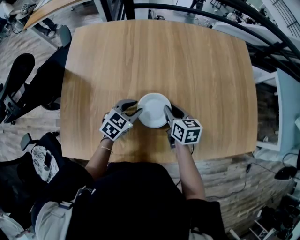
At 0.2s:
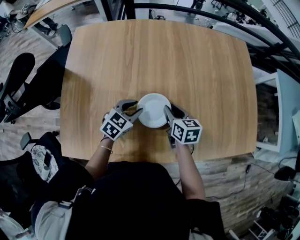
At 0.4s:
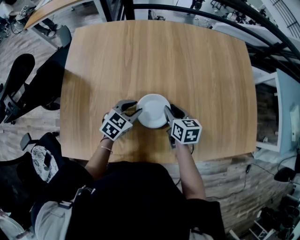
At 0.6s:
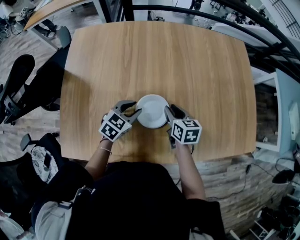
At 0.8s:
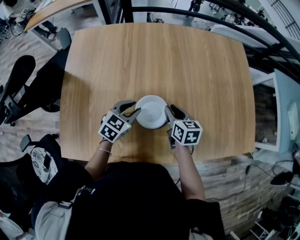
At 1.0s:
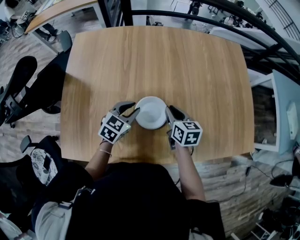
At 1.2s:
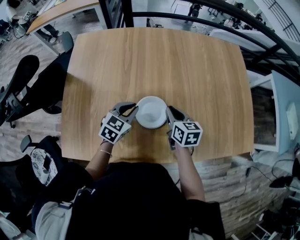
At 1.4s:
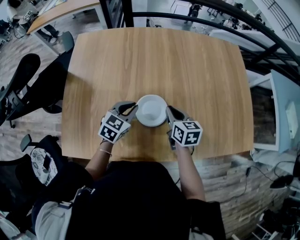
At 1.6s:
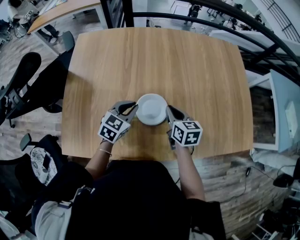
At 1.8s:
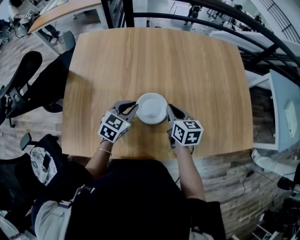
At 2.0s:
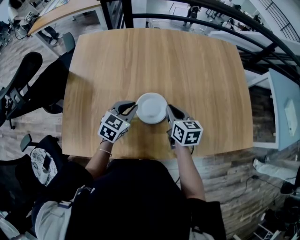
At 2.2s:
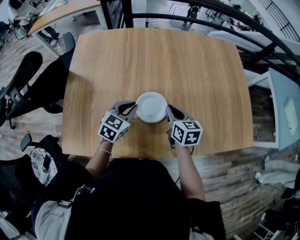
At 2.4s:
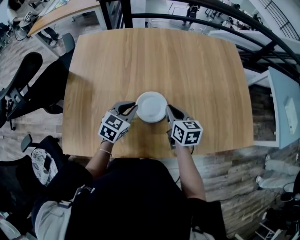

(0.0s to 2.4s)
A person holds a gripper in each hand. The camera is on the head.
0.0s - 2.4s: The grippers move only a little.

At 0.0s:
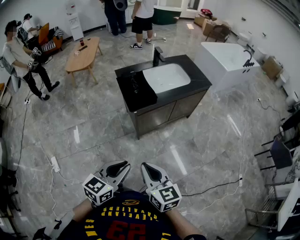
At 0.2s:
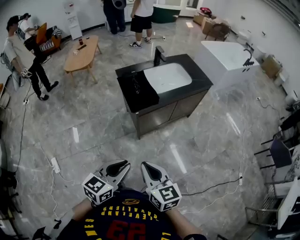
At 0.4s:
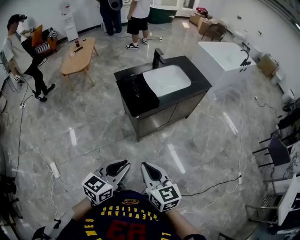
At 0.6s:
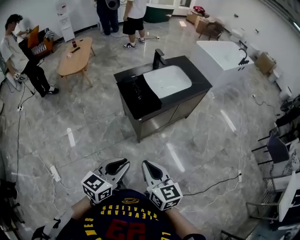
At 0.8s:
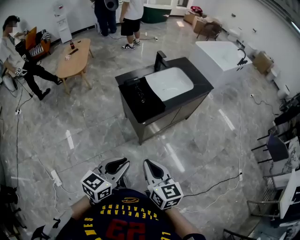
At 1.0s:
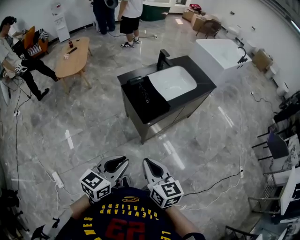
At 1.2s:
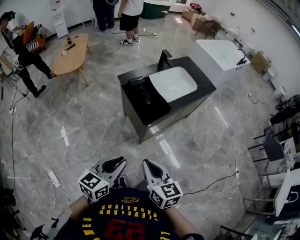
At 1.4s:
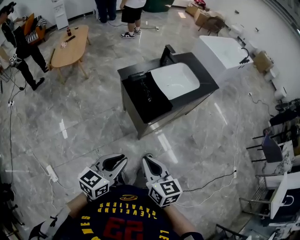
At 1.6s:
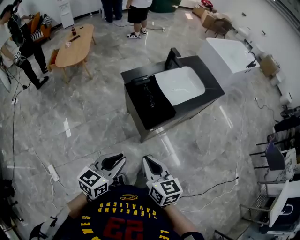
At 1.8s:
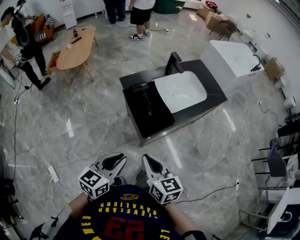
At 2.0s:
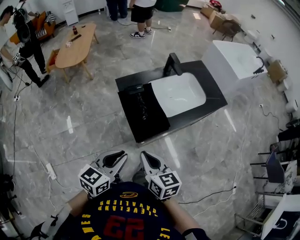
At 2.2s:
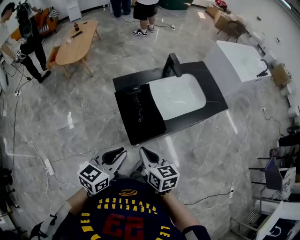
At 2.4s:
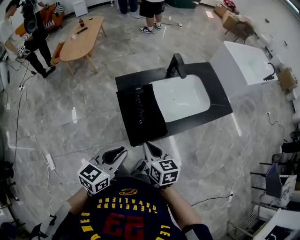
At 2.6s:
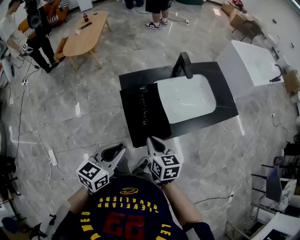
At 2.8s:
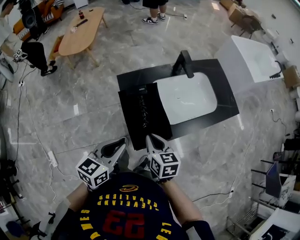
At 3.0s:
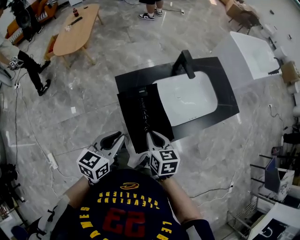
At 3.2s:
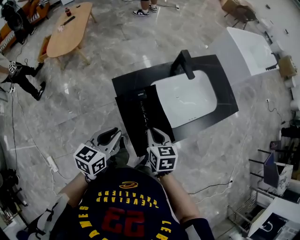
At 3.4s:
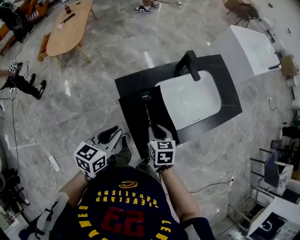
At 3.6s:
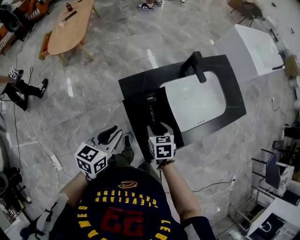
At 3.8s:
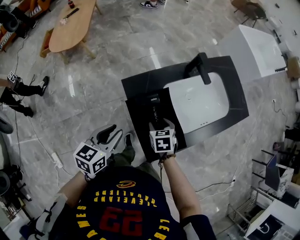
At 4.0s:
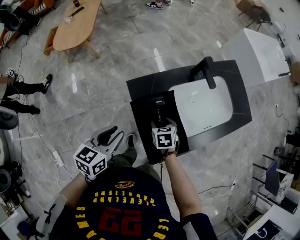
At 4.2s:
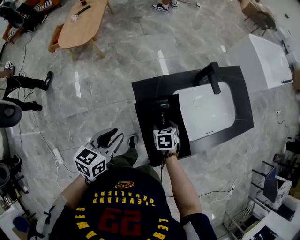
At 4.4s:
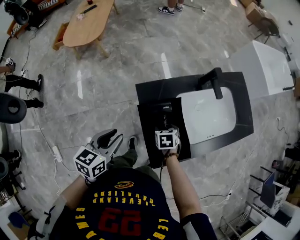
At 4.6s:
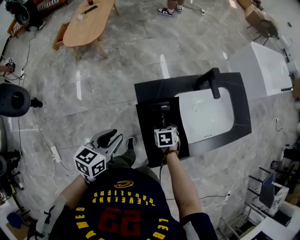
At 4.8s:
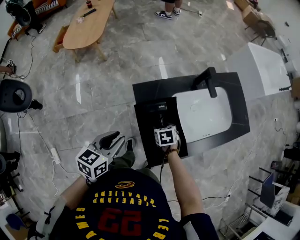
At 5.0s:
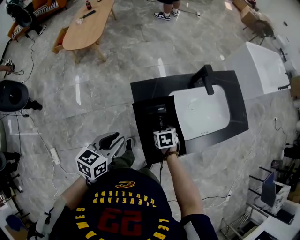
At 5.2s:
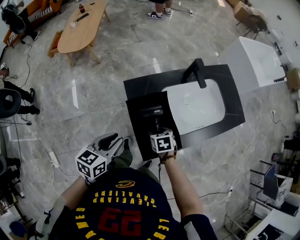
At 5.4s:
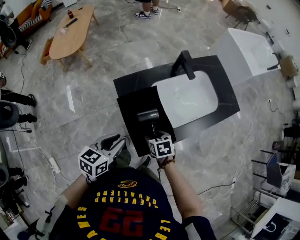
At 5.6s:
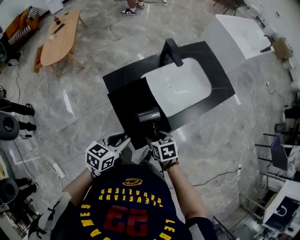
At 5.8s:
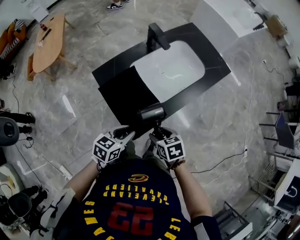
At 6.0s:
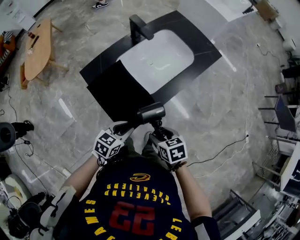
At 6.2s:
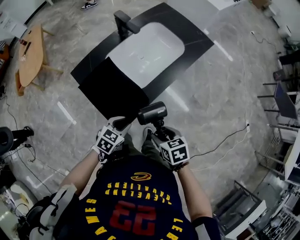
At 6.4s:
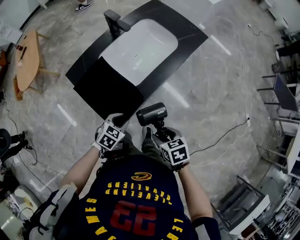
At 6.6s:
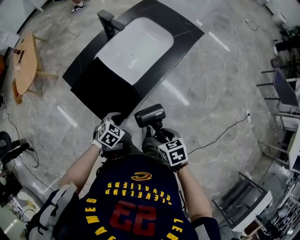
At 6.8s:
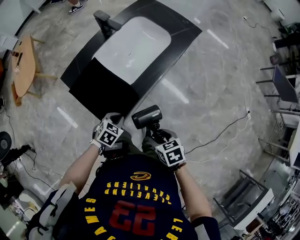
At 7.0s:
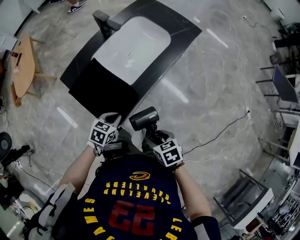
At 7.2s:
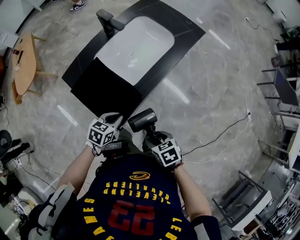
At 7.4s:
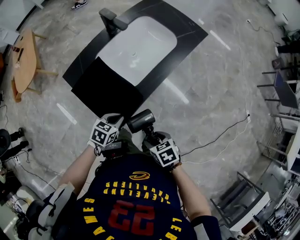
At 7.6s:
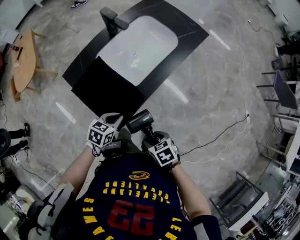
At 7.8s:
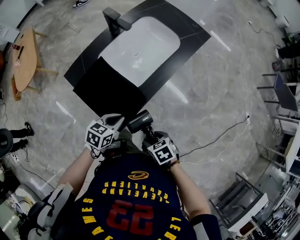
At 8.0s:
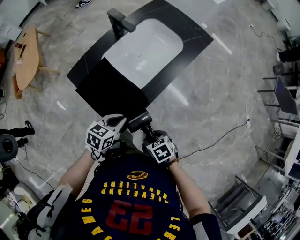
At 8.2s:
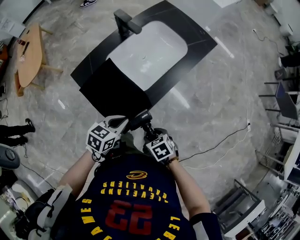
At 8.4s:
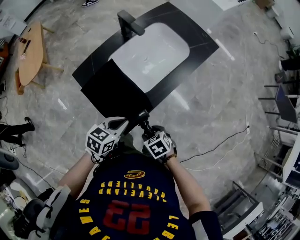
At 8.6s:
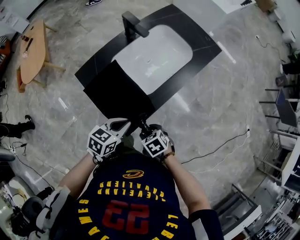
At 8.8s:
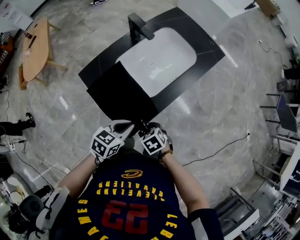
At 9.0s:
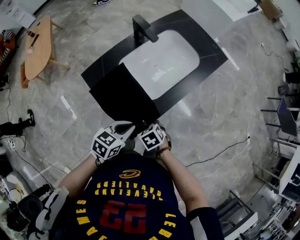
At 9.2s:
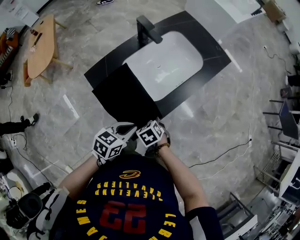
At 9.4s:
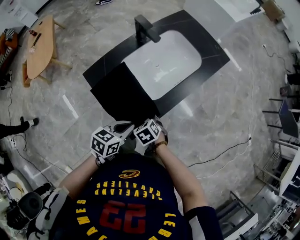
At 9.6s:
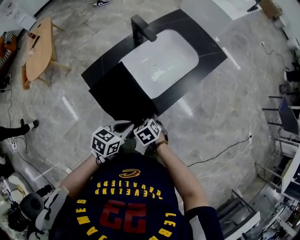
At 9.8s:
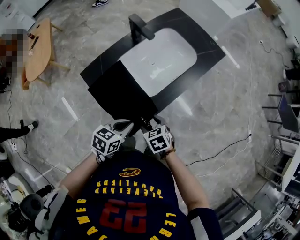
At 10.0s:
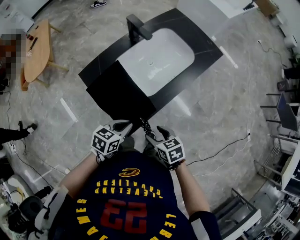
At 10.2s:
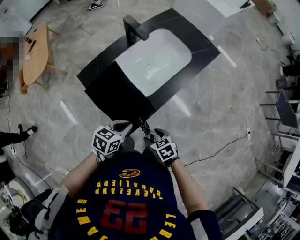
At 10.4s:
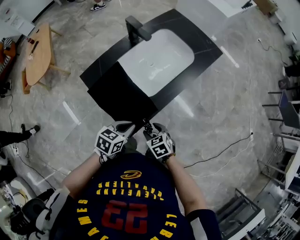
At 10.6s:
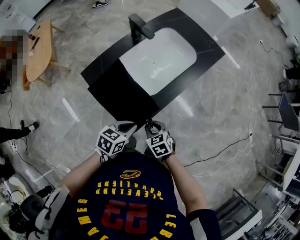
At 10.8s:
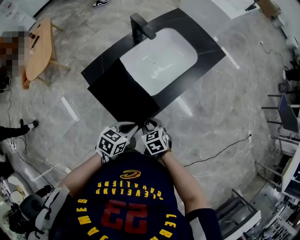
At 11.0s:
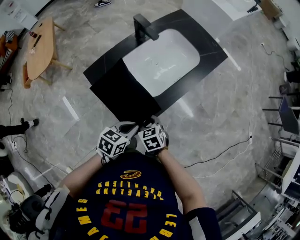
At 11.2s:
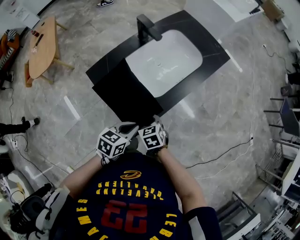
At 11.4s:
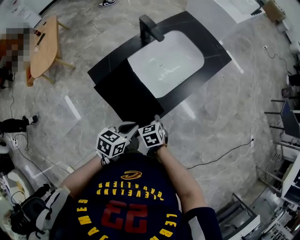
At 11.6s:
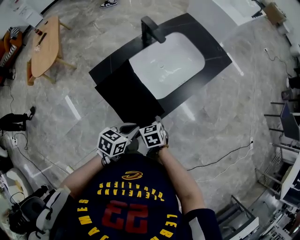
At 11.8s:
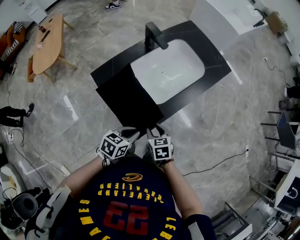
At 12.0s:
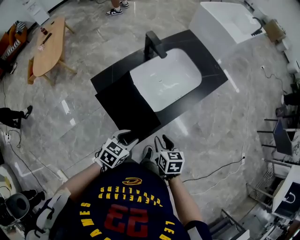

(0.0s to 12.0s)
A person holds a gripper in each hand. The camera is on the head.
0.0s - 1.6s: The right gripper travels forward and to the left by roughly 25 cm, while the left gripper moves to the left and forward, about 30 cm.
1.6s - 3.0s: The grippers both shift forward by roughly 30 cm.
3.0s - 4.4s: The left gripper is displaced to the left and forward by roughly 15 cm; the right gripper heads downward and forward, covering about 20 cm, tips its fingers downward by about 30 degrees, and opens up.
4.4s - 6.0s: The left gripper shifts approximately 30 cm to the right, backward and downward, and changes its angle by approximately 40 degrees, while the right gripper is displaced backward and to the right by roughly 30 cm, and turns by approximately 20 degrees.
6.0s - 7.6s: The right gripper heads backward and downward, covering some 10 cm, and travels to the right and back again, approximately 10 cm each way.
7.6s - 9.0s: The left gripper travels upward by roughly 10 cm, while the right gripper changes place by about 15 cm.
10.4s - 12.0s: The left gripper opens its fingers. Meanwhile the right gripper moves upward, roughly 10 cm, travels to the left and back again, roughly 10 cm each way, swivels roughly 20 degrees, and closes up.

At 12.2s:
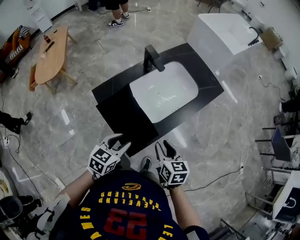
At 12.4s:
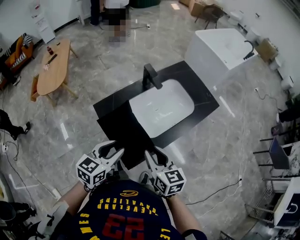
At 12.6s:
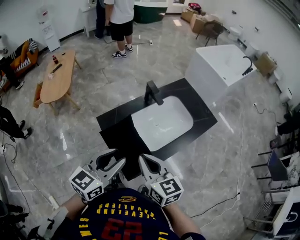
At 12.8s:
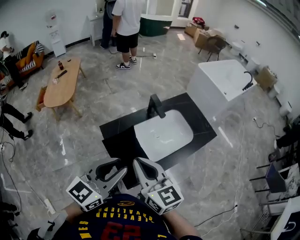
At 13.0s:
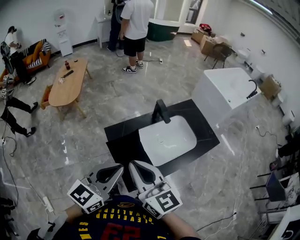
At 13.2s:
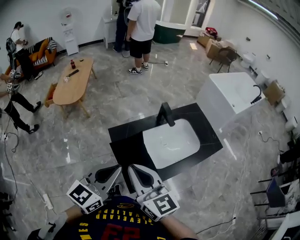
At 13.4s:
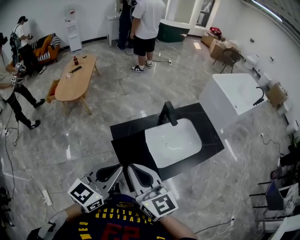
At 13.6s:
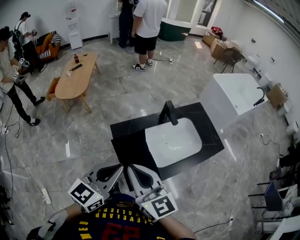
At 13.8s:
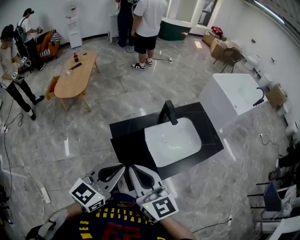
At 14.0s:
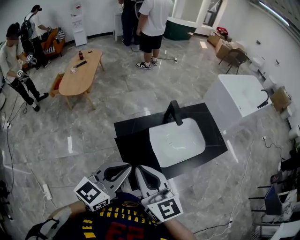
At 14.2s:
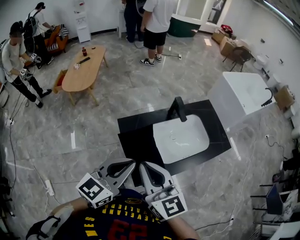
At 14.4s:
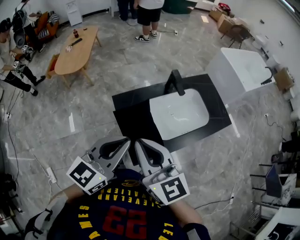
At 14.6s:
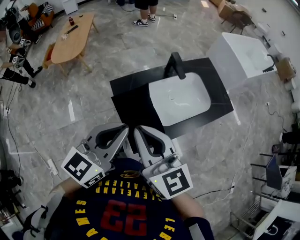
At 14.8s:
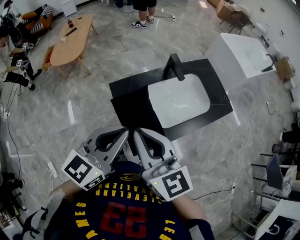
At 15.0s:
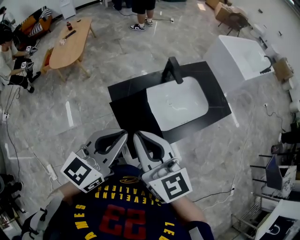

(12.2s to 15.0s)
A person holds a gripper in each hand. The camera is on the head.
12.2s - 13.6s: The right gripper goes approximately 35 cm upward and to the left, tilts its fingers roughly 30 degrees upward, and closes up. Meanwhile the left gripper shifts roughly 25 cm upward, swivels roughly 30 degrees, and closes up.
13.6s - 15.0s: The grippers move only a little.

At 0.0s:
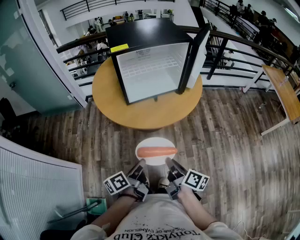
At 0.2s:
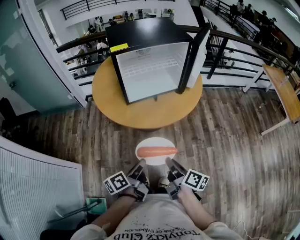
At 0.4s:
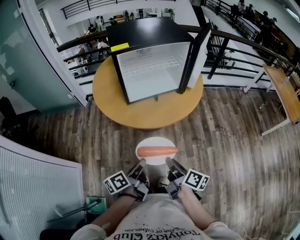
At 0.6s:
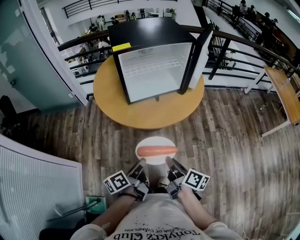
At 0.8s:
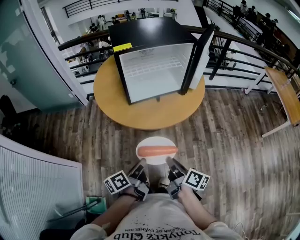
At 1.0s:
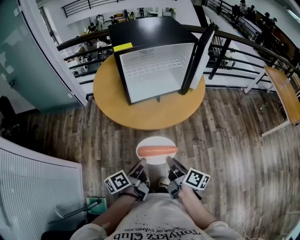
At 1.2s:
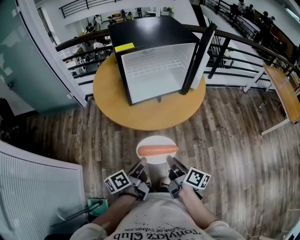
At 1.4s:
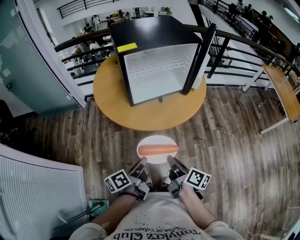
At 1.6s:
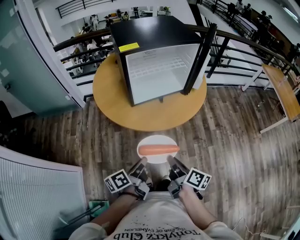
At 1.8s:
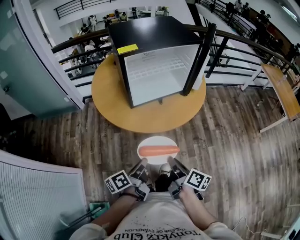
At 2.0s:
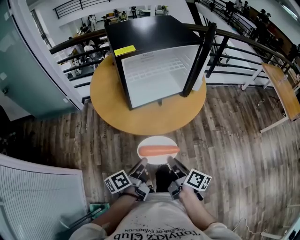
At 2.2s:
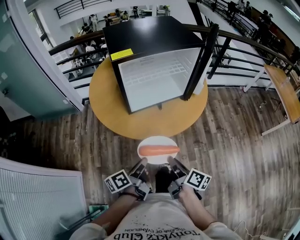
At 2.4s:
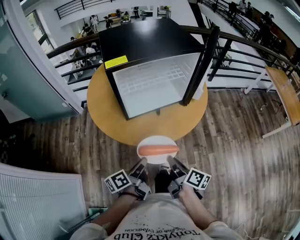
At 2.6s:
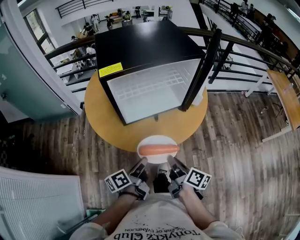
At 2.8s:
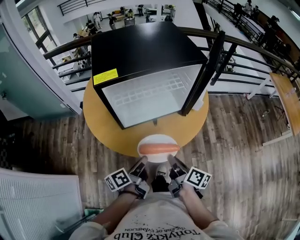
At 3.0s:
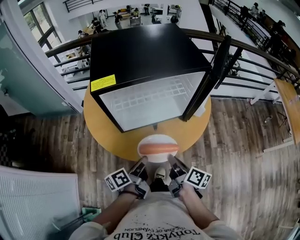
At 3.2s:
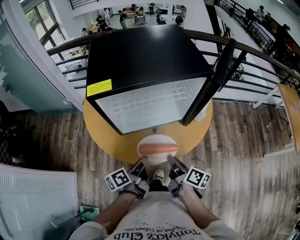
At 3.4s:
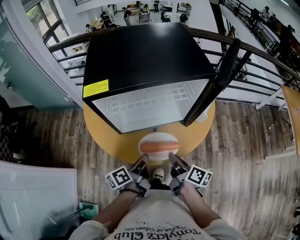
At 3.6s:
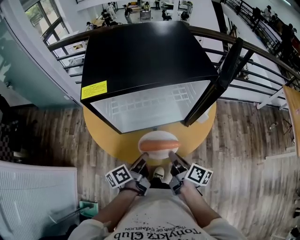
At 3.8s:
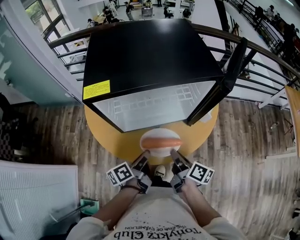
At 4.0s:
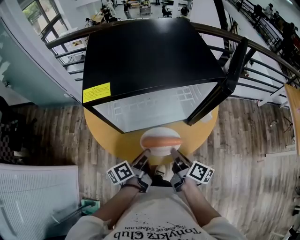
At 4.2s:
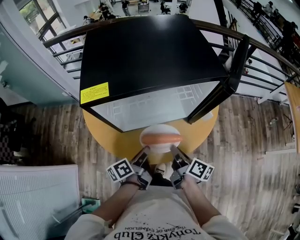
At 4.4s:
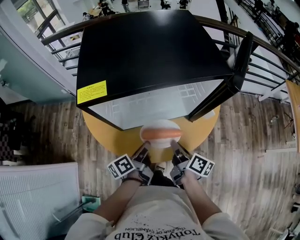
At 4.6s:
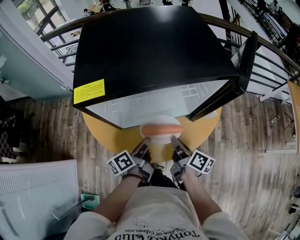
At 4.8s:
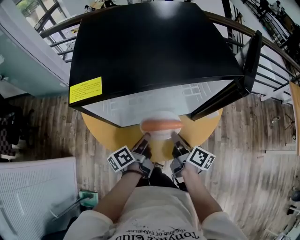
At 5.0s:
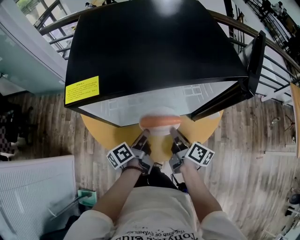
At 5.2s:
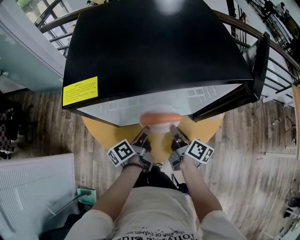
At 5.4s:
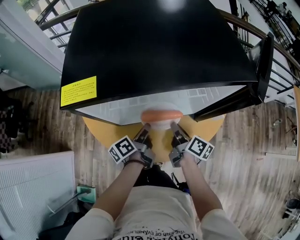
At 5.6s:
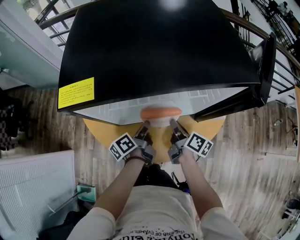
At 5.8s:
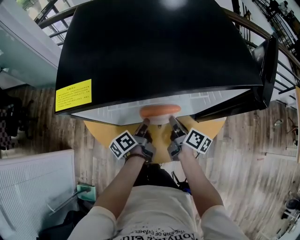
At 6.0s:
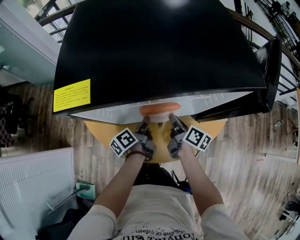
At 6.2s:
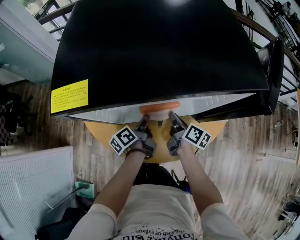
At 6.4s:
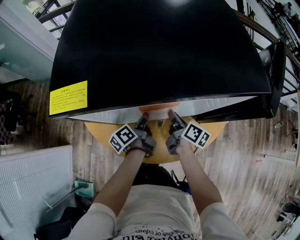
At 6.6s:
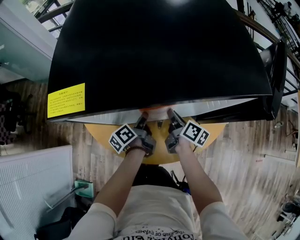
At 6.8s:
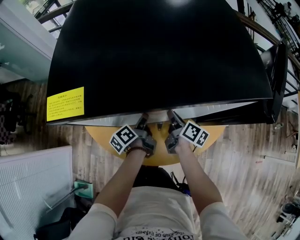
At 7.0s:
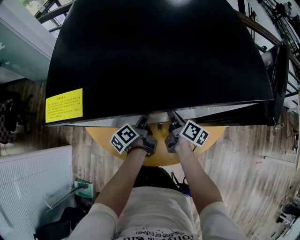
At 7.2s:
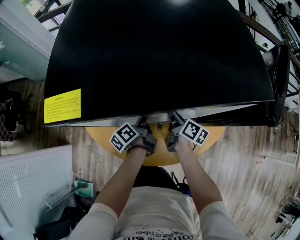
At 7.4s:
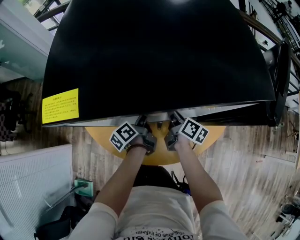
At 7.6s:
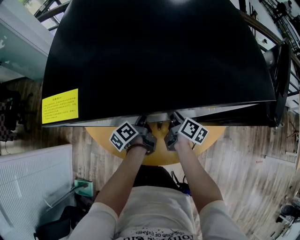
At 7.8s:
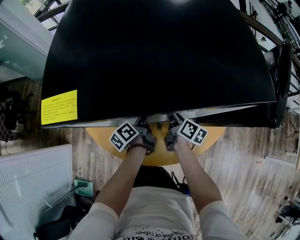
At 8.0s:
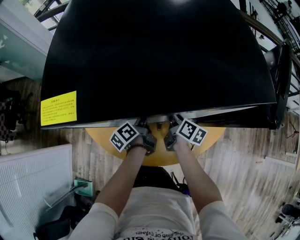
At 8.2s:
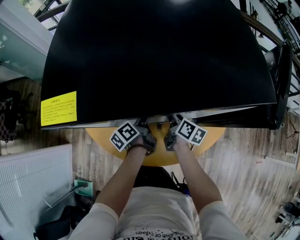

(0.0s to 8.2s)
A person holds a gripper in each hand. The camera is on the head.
0.0s - 1.6s: The right gripper ends up approximately 5 cm from where it was.
1.6s - 3.2s: The right gripper moves some 25 cm.
3.2s - 5.0s: The right gripper shifts by approximately 15 cm.
5.0s - 6.6s: The right gripper moves roughly 10 cm.
